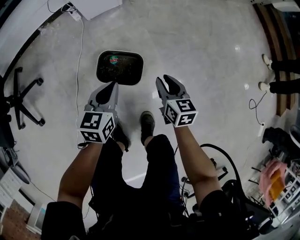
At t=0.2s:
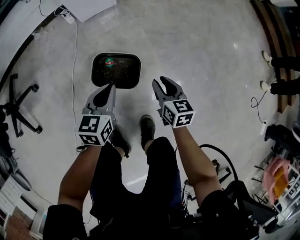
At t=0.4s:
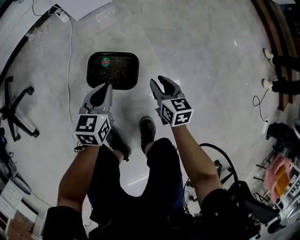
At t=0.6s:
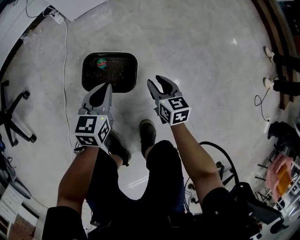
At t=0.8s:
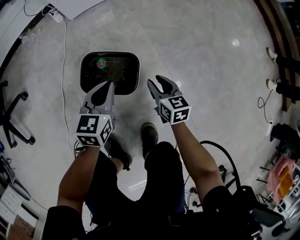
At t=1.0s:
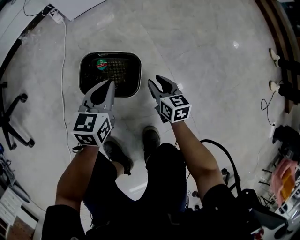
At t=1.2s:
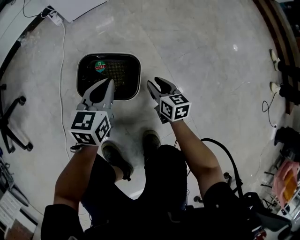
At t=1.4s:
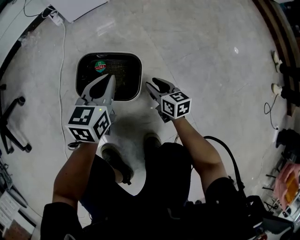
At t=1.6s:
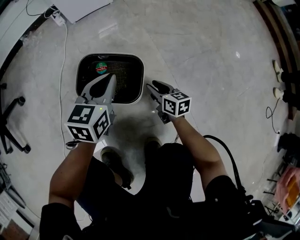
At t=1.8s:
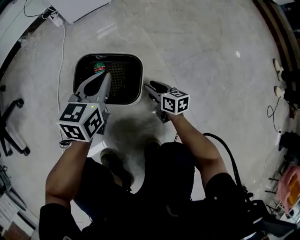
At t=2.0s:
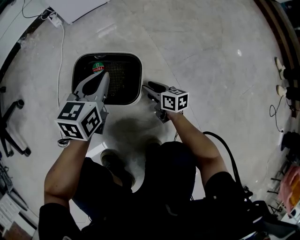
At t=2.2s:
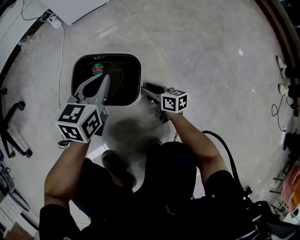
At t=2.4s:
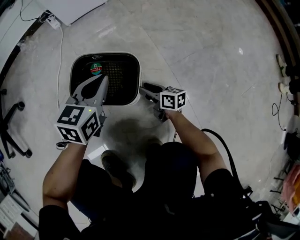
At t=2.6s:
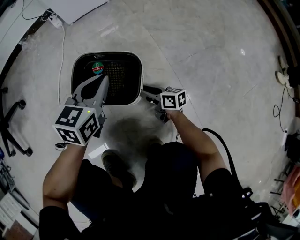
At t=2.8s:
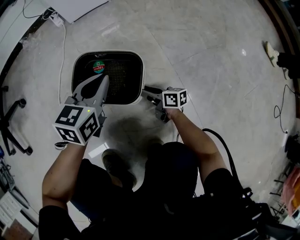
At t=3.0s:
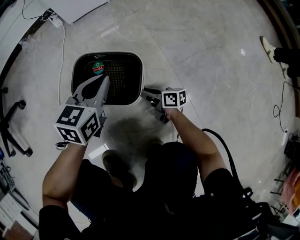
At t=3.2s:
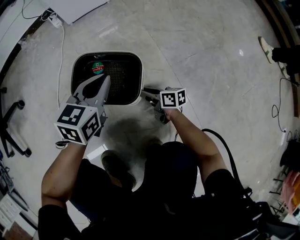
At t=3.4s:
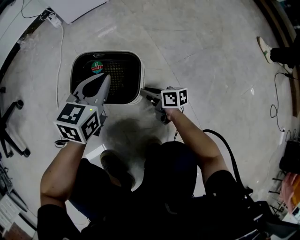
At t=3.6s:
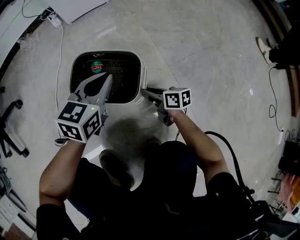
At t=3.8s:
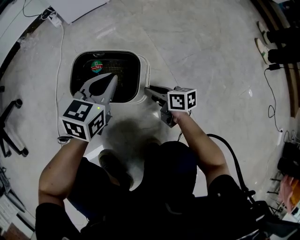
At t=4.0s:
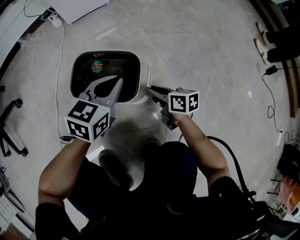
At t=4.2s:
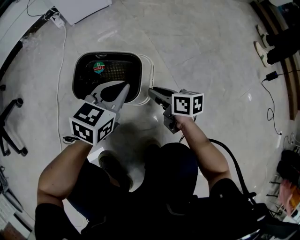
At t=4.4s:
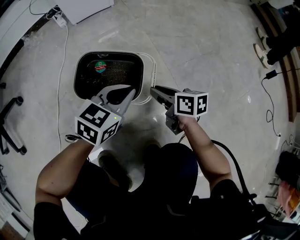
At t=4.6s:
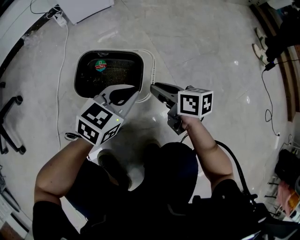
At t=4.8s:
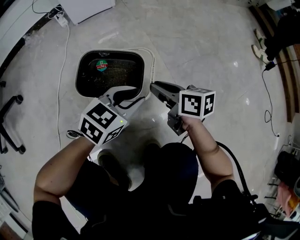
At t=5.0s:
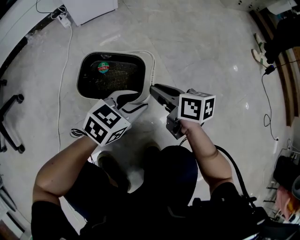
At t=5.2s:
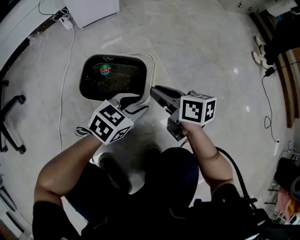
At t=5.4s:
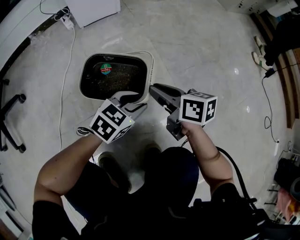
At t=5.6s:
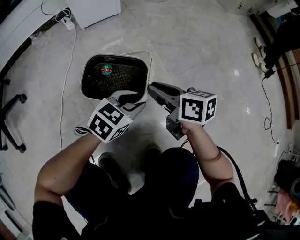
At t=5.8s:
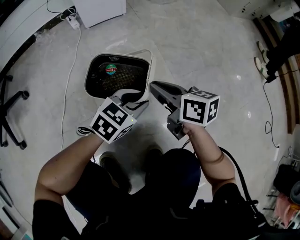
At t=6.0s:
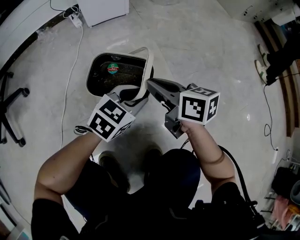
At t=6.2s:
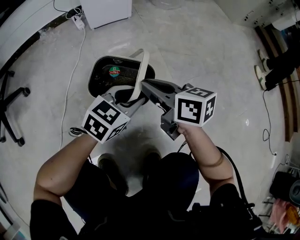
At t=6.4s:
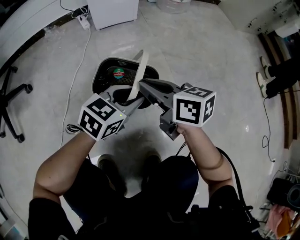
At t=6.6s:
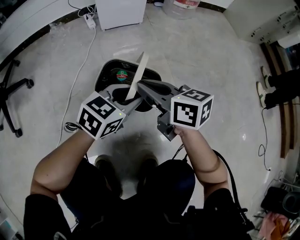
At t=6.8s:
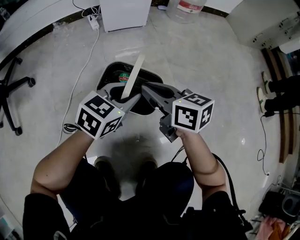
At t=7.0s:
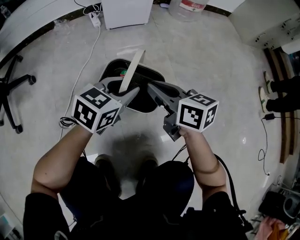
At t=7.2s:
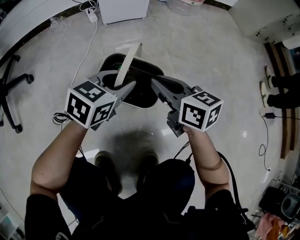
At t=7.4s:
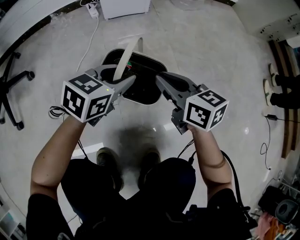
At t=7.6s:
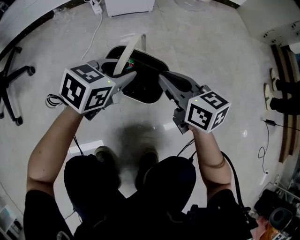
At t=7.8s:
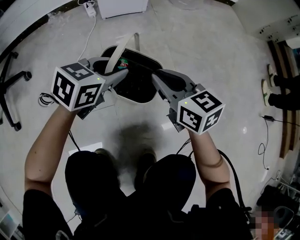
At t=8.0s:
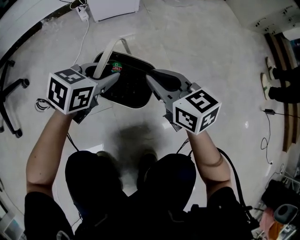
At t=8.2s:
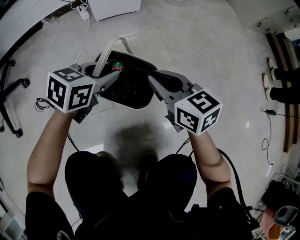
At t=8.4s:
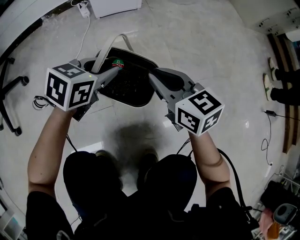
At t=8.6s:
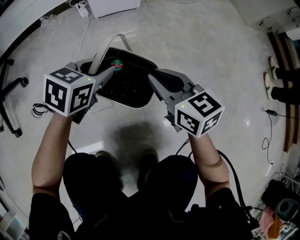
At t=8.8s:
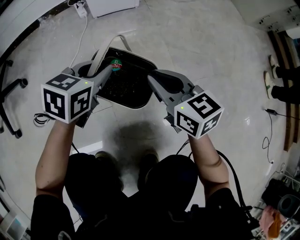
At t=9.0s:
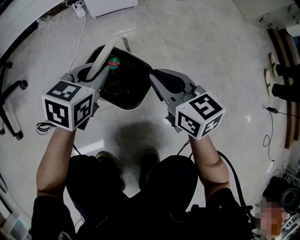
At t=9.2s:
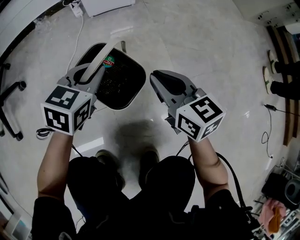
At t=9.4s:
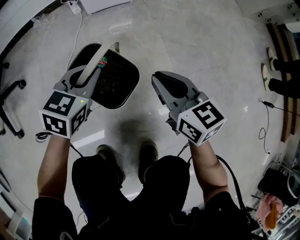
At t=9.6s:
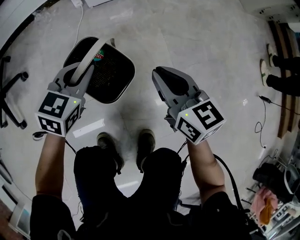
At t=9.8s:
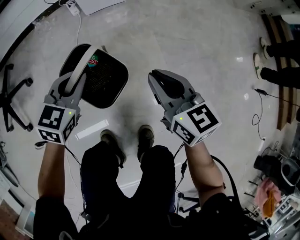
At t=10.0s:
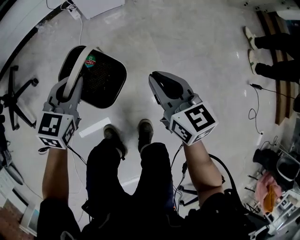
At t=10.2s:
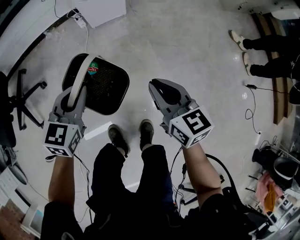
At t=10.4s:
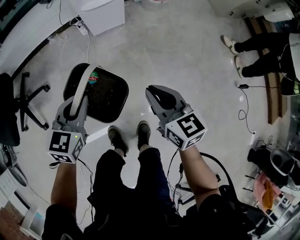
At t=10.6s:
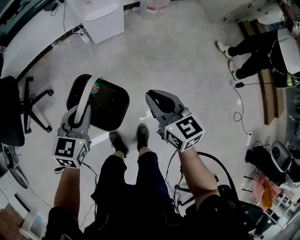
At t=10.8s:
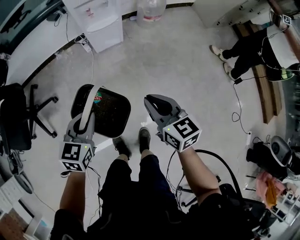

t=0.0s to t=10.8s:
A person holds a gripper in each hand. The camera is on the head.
t=0.0s to t=1.6s: The right gripper goes some 35 cm downward. Meanwhile the left gripper shifts about 20 cm downward.
t=1.6s to t=3.0s: The right gripper travels downward by roughly 5 cm, and changes its angle by roughly 30 degrees.
t=3.0s to t=4.6s: The left gripper travels backward and to the right by some 10 cm, and changes its angle by some 20 degrees; the right gripper is displaced upward by approximately 15 cm.
t=4.6s to t=6.2s: The right gripper goes roughly 15 cm upward and to the left, while the left gripper opens up.
t=6.2s to t=7.8s: The right gripper changes its angle by about 20 degrees. Meanwhile the left gripper travels forward and to the left by approximately 10 cm.
t=7.8s to t=9.2s: The left gripper closes up.
t=9.2s to t=10.8s: Both grippers travel together upward, some 50 cm.

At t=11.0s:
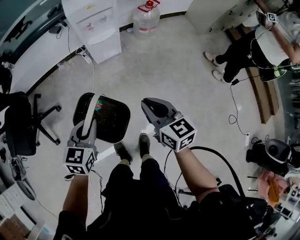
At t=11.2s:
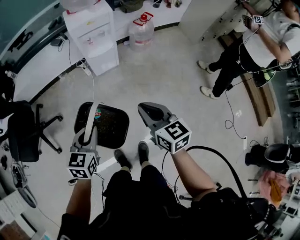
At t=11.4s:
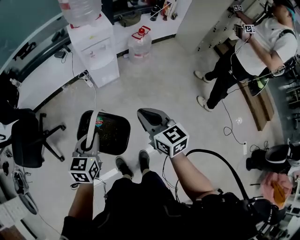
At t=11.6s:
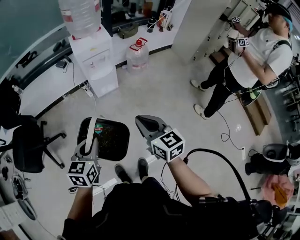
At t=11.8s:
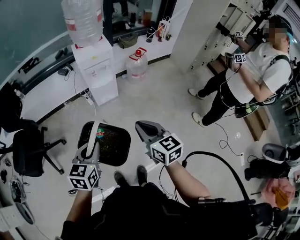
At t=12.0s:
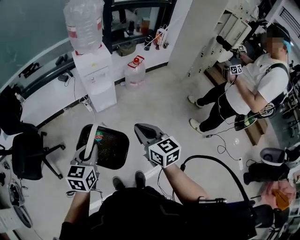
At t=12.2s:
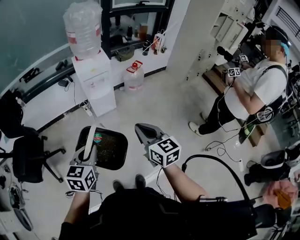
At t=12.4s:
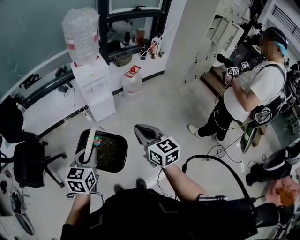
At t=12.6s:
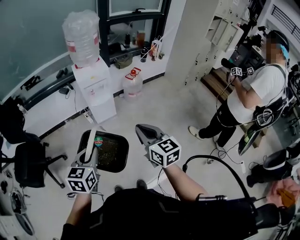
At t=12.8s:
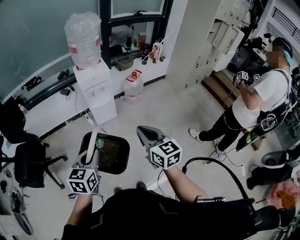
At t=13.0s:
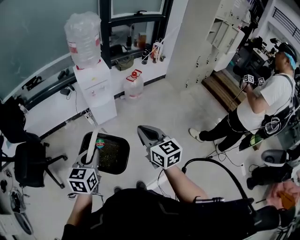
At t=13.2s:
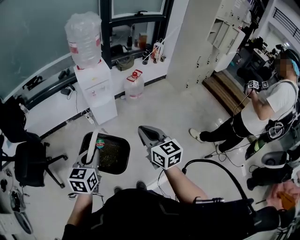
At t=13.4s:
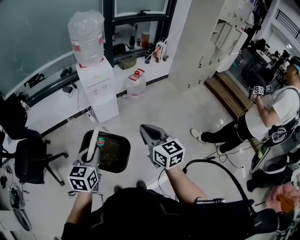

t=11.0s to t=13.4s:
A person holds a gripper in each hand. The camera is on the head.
t=11.0s to t=12.2s: The two grippers go roughly 20 cm upward.
t=12.2s to t=13.4s: The grippers stay close to where they were, moving slightly.

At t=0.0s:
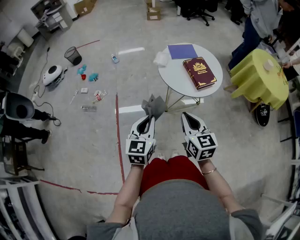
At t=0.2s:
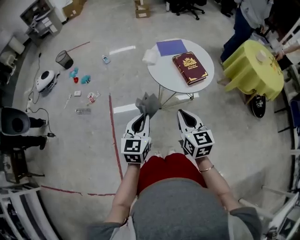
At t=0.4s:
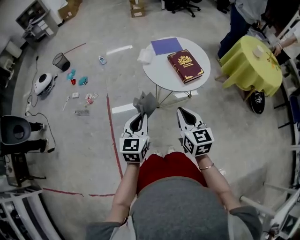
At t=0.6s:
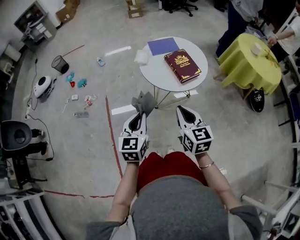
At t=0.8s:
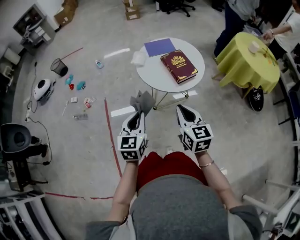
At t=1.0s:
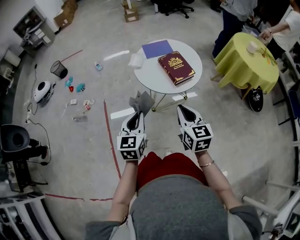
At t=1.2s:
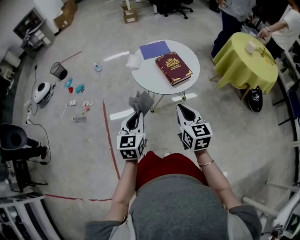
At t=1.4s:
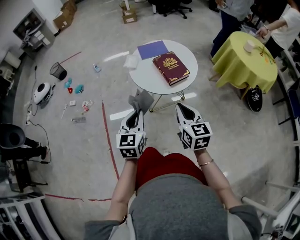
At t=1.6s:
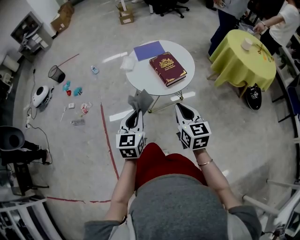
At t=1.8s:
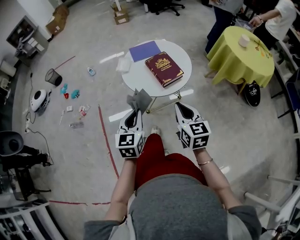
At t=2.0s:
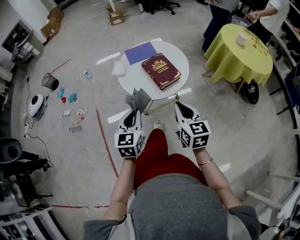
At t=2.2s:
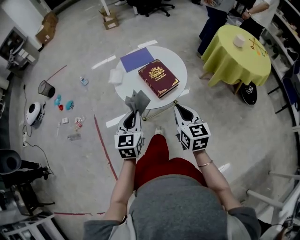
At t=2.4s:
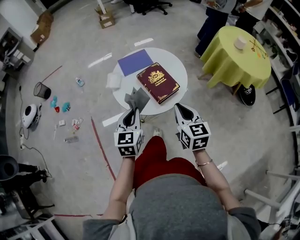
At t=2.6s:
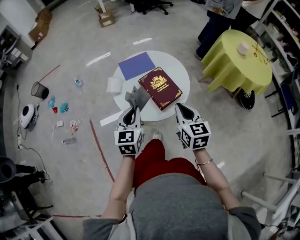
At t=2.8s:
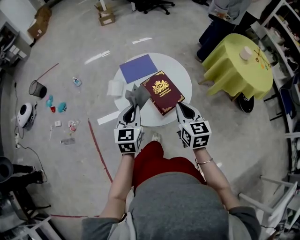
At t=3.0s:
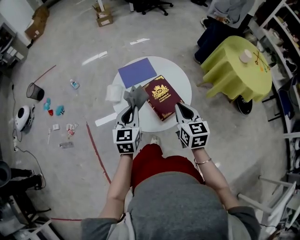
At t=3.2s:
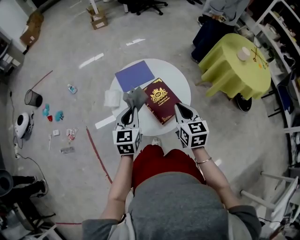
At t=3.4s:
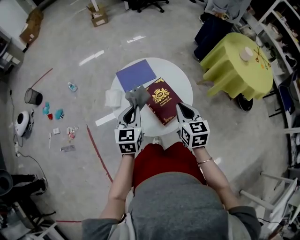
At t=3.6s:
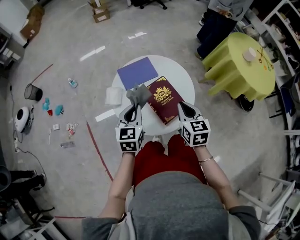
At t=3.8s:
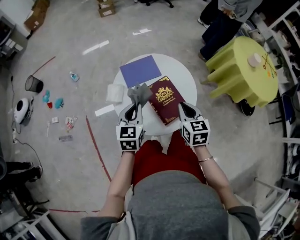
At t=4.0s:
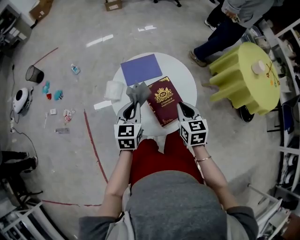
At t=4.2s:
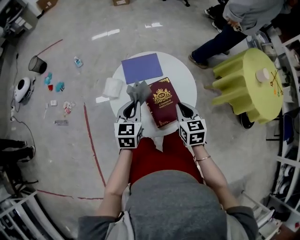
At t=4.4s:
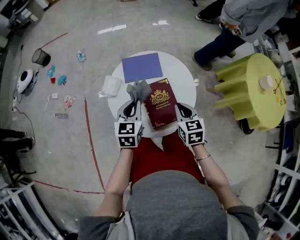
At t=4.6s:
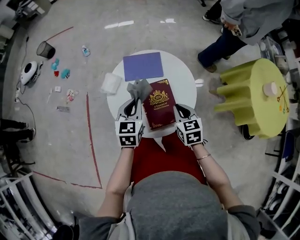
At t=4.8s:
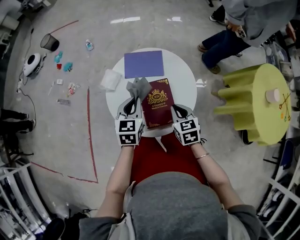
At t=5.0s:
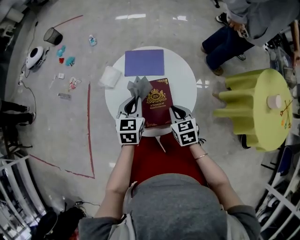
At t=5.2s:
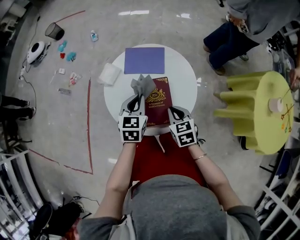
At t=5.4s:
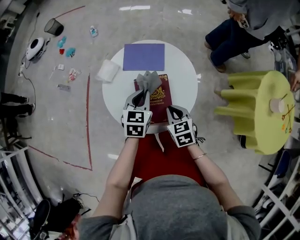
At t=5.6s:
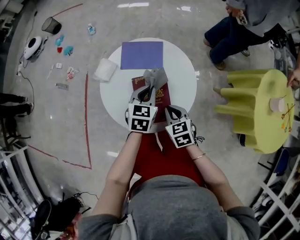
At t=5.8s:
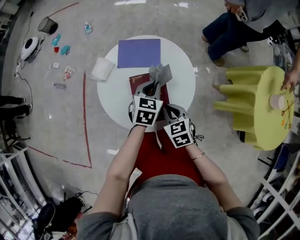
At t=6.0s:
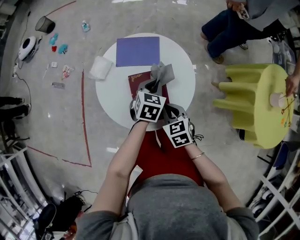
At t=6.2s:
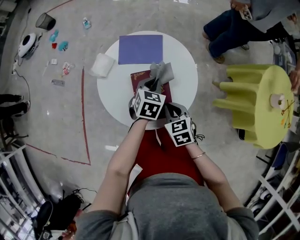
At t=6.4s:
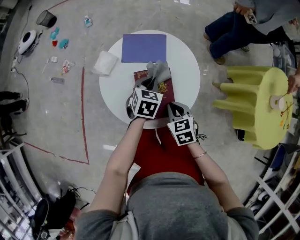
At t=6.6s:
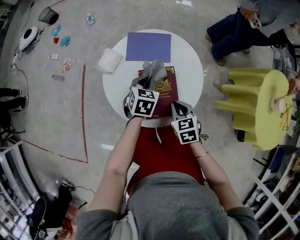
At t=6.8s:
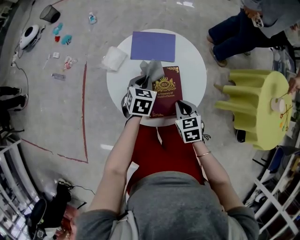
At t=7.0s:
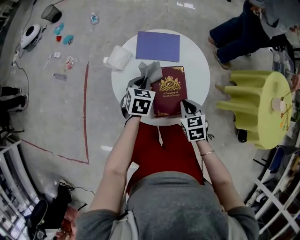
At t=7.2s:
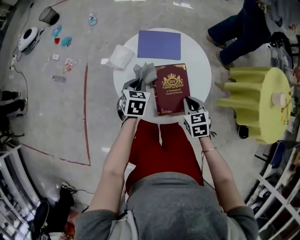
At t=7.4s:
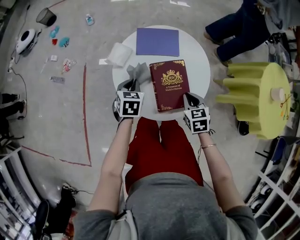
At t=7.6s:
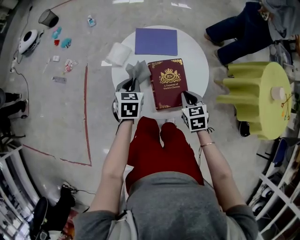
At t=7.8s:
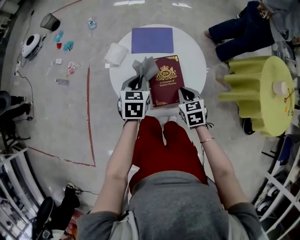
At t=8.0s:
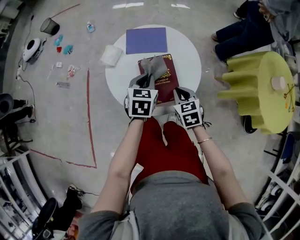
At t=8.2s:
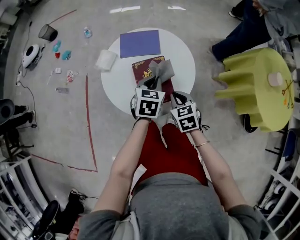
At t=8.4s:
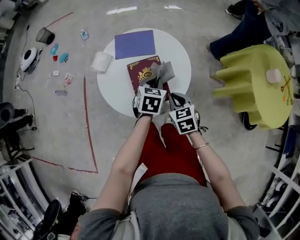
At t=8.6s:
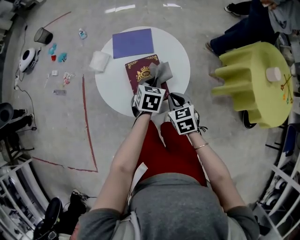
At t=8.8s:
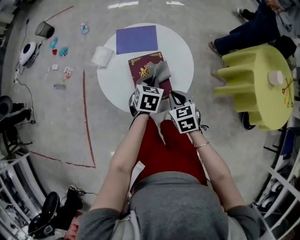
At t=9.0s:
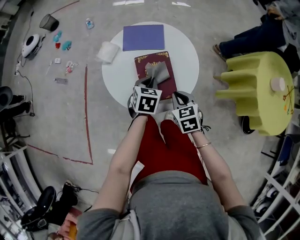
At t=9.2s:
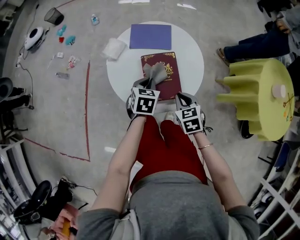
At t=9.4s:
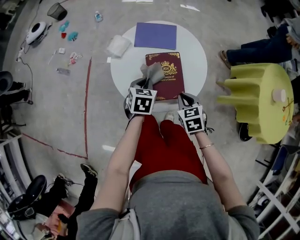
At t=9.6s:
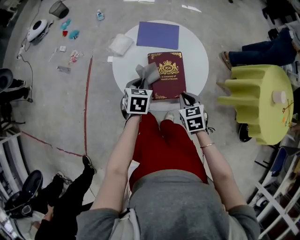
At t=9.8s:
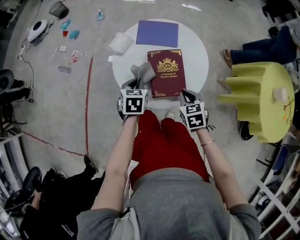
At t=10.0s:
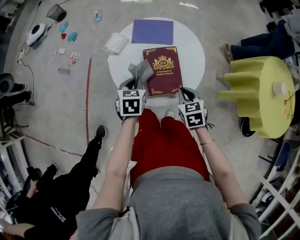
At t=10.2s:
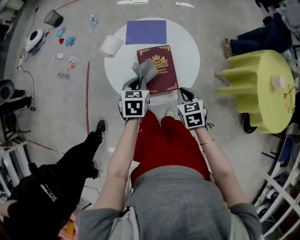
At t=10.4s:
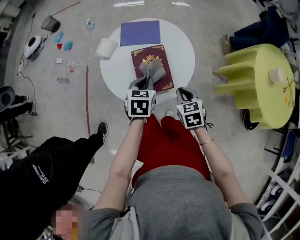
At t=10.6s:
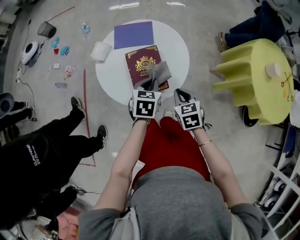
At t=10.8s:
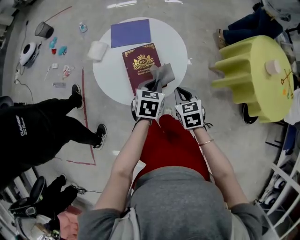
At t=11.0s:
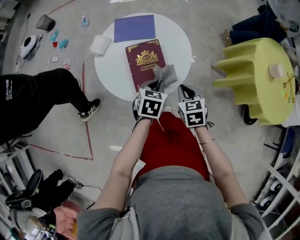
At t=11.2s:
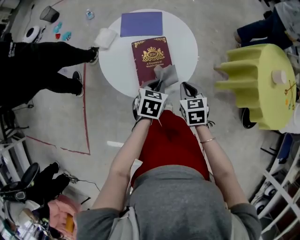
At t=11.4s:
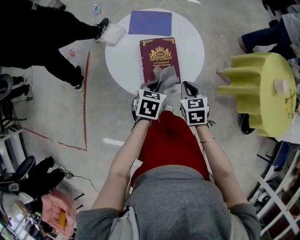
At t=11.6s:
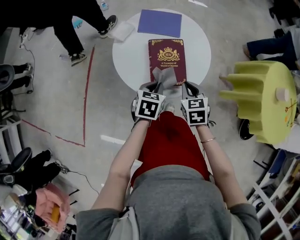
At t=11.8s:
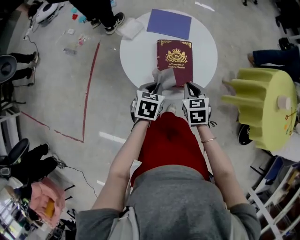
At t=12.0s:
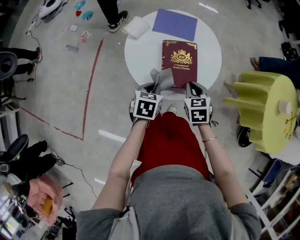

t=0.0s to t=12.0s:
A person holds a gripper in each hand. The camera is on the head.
t=0.0s to t=1.6s: Both grippers move to the right, approximately 15 cm.
t=1.6s to t=3.0s: Both grippers move forward, roughly 25 cm.
t=3.0s to t=4.4s: The left gripper moves forward, about 5 cm; the right gripper is displaced forward and downward by approximately 15 cm, and rotates roughly 20 degrees.
t=4.4s to t=6.0s: The left gripper heads to the right and downward, covering approximately 15 cm; the right gripper shifts approximately 5 cm downward, and rotates roughly 20 degrees.
t=6.0s to t=7.6s: The left gripper shifts approximately 20 cm to the left.
t=7.6s to t=9.0s: The left gripper shifts approximately 15 cm to the right.
t=9.0s to t=10.4s: The left gripper reaches approximately 10 cm to the left, then returns.
t=10.4s to t=12.0s: The left gripper shifts about 10 cm backward and to the left. The right gripper is displaced to the left by about 5 cm.
